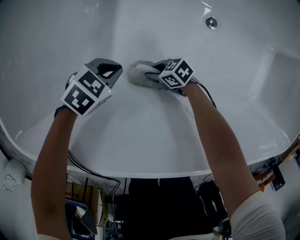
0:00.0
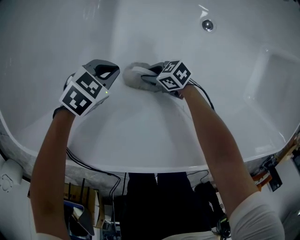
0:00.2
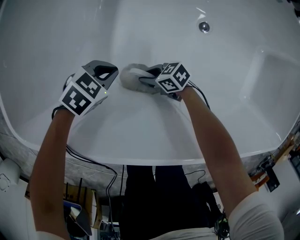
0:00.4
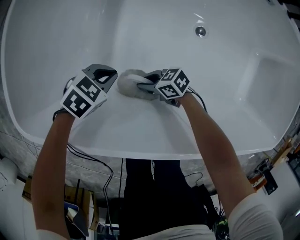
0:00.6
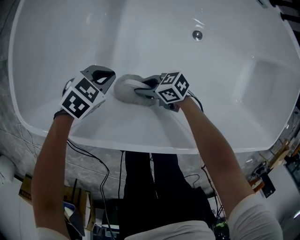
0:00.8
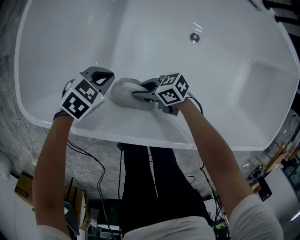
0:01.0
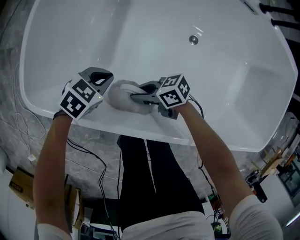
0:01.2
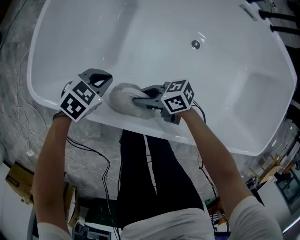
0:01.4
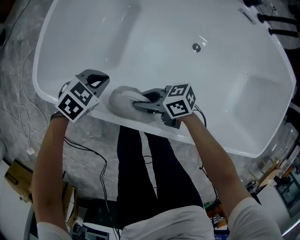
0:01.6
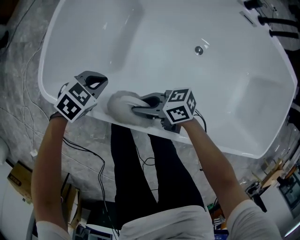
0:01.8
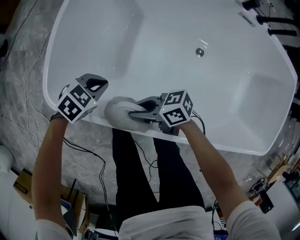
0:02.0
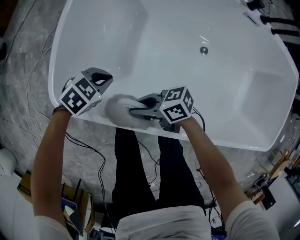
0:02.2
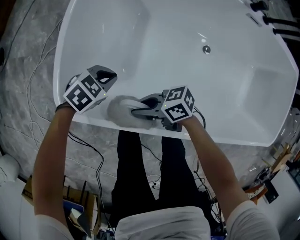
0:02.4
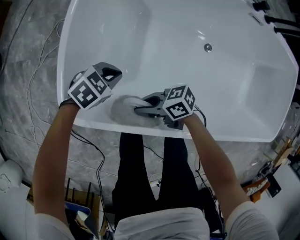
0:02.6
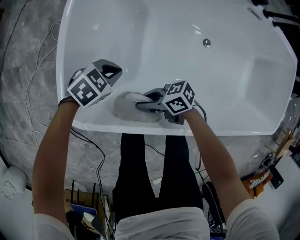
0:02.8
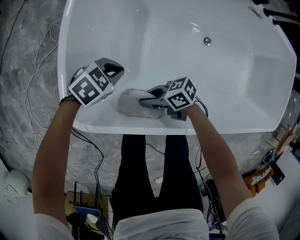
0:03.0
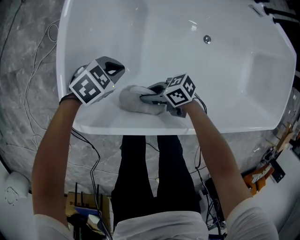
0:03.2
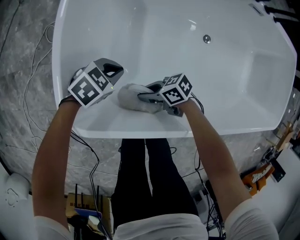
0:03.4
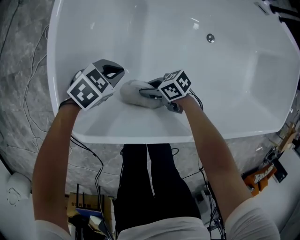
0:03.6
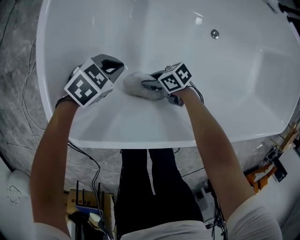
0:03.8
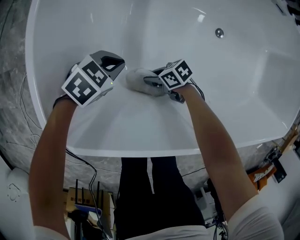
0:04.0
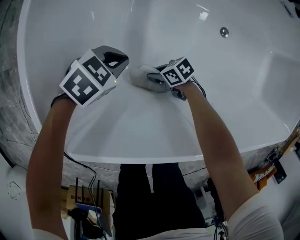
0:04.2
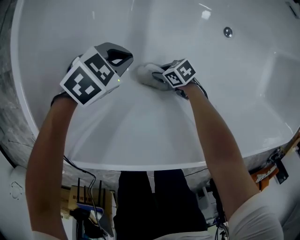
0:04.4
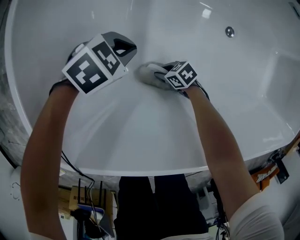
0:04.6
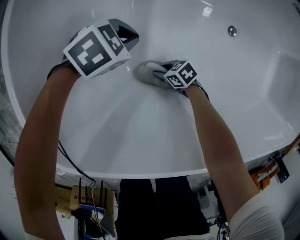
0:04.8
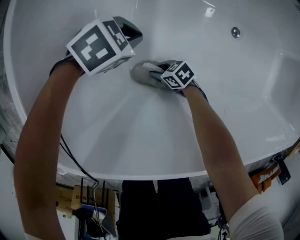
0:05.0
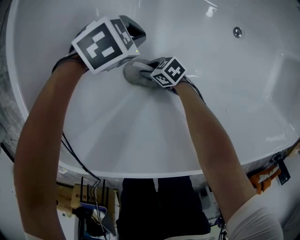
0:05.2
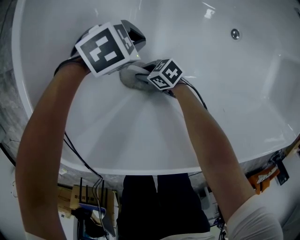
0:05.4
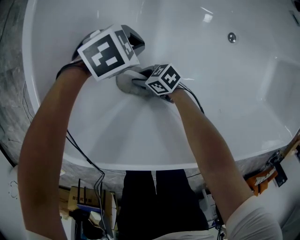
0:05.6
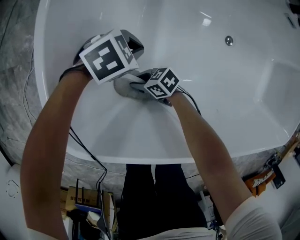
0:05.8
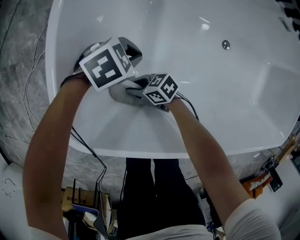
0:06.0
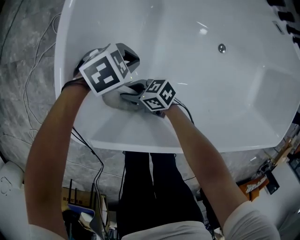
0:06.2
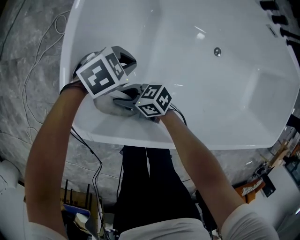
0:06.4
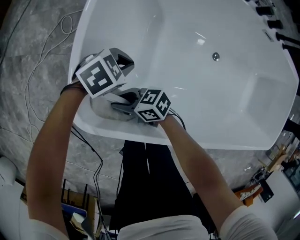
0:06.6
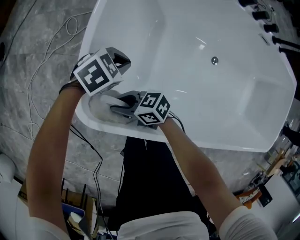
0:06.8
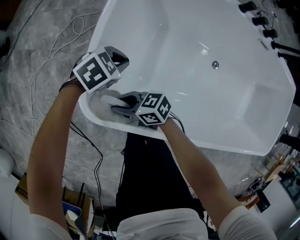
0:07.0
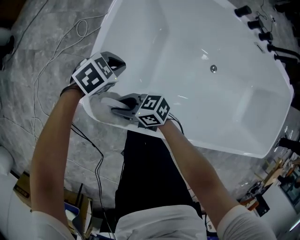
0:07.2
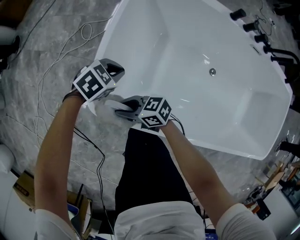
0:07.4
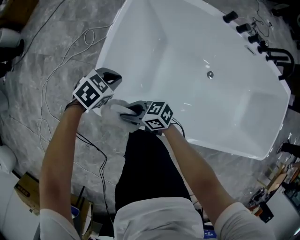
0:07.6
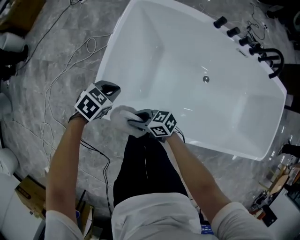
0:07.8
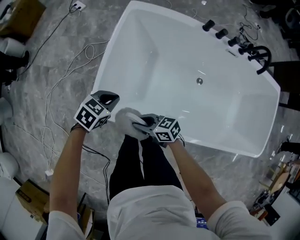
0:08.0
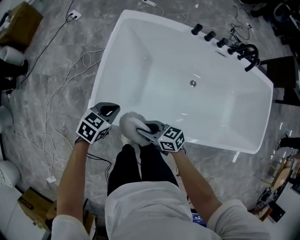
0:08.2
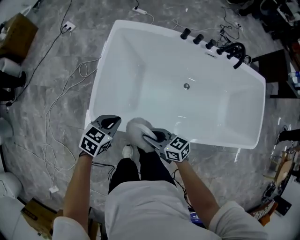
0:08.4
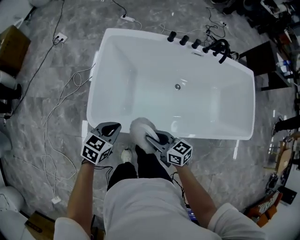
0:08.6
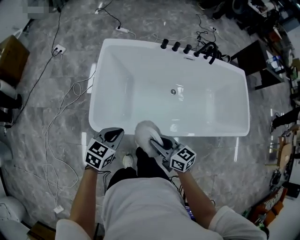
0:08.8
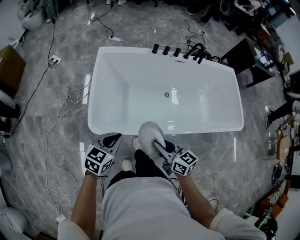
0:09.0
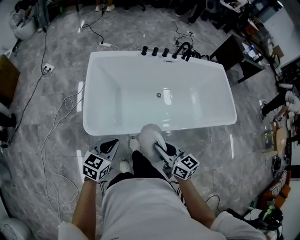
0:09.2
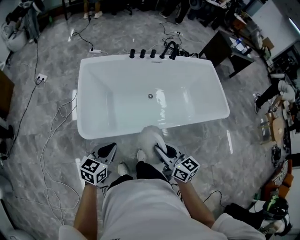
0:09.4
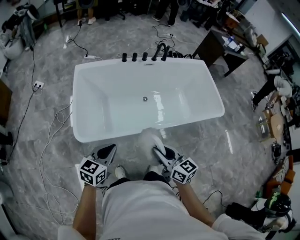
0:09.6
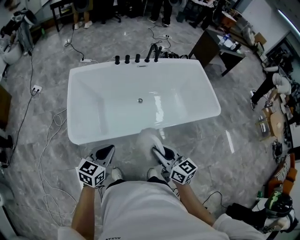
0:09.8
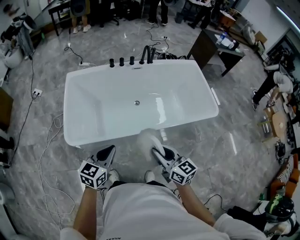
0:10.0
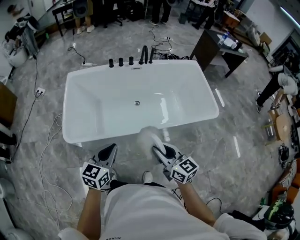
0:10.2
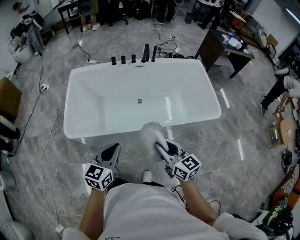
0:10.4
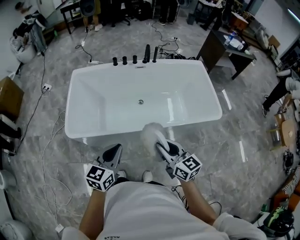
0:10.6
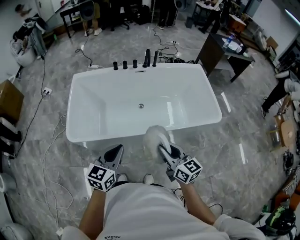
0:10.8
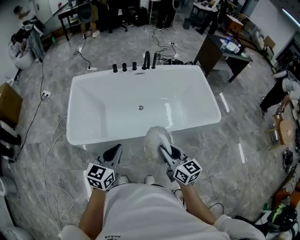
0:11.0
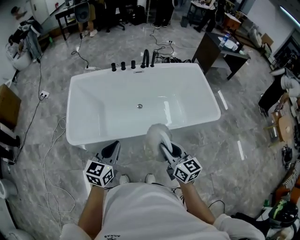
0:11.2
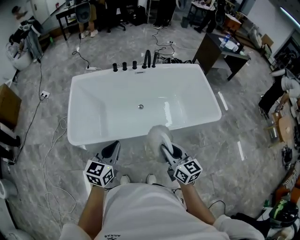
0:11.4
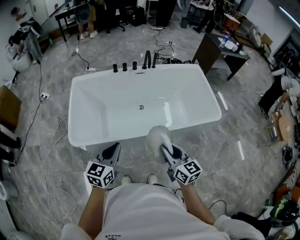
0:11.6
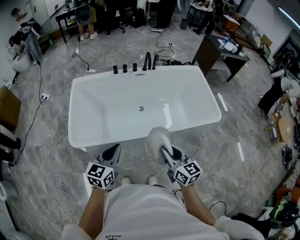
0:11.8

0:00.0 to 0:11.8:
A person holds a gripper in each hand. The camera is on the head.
0:00.0 to 0:01.4: The left gripper shifts roughly 20 cm upward. Meanwhile the right gripper moves upward, approximately 30 cm, and rotates about 20 degrees.
0:01.4 to 0:03.0: The left gripper ends up approximately 15 cm from where it was, while the right gripper changes place by roughly 15 cm.
0:03.0 to 0:04.4: The right gripper heads downward, covering approximately 25 cm, and swivels about 30 degrees. The left gripper travels downward by approximately 5 cm.
0:04.4 to 0:06.0: The right gripper moves about 20 cm, and swivels some 20 degrees.
0:06.0 to 0:07.4: The right gripper shifts some 25 cm upward; the left gripper travels upward by some 15 cm.
0:07.4 to 0:08.8: The left gripper goes some 25 cm upward, and changes its angle by approximately 30 degrees. The right gripper moves approximately 35 cm, and swivels some 50 degrees.
0:08.8 to 0:10.4: The left gripper shifts roughly 35 cm to the right, backward and upward; the right gripper shifts approximately 35 cm to the right and upward, and changes its angle by about 20 degrees.
0:10.4 to 0:11.8: The left gripper shifts by approximately 5 cm.

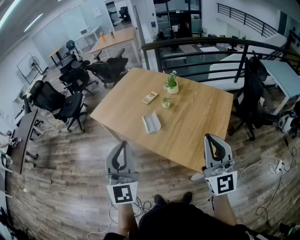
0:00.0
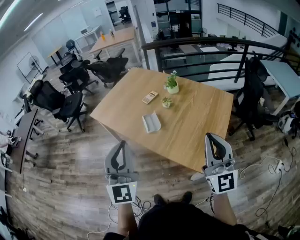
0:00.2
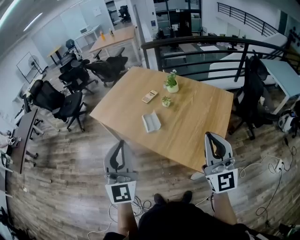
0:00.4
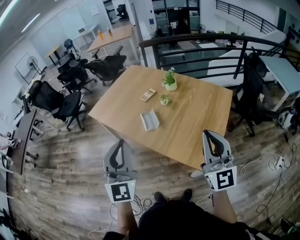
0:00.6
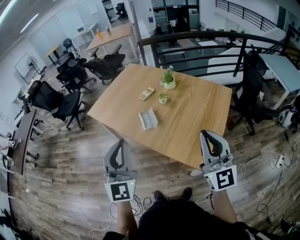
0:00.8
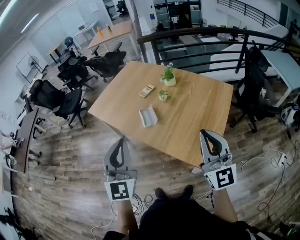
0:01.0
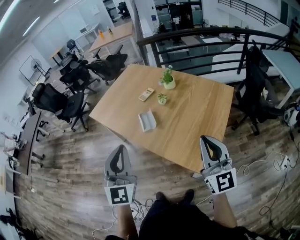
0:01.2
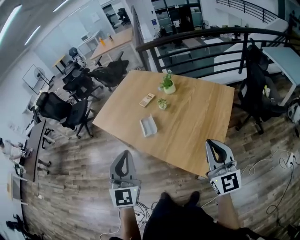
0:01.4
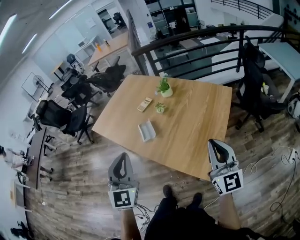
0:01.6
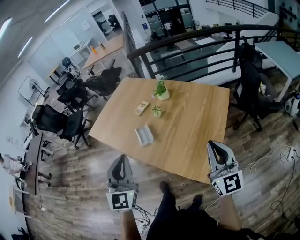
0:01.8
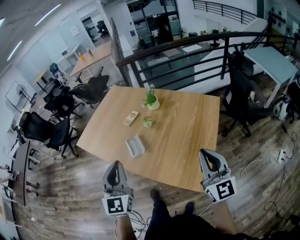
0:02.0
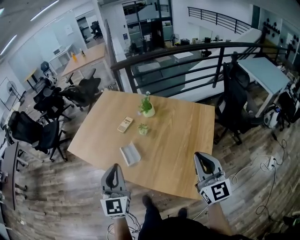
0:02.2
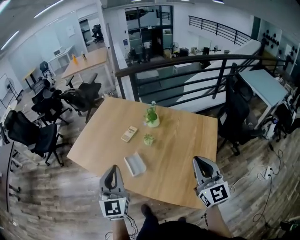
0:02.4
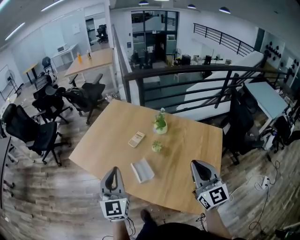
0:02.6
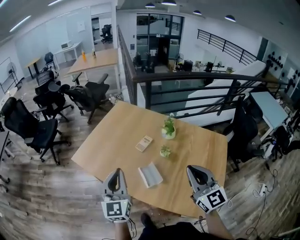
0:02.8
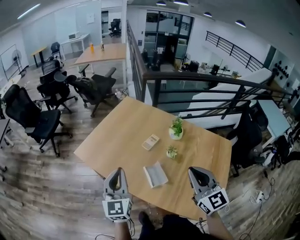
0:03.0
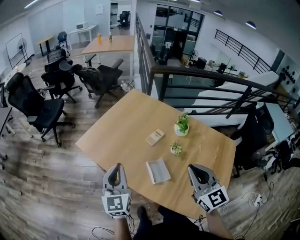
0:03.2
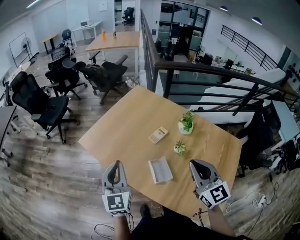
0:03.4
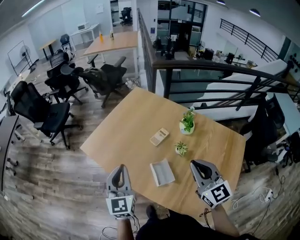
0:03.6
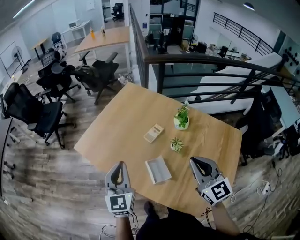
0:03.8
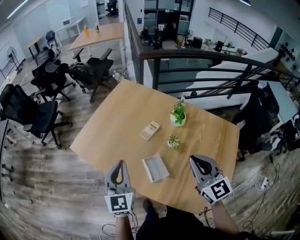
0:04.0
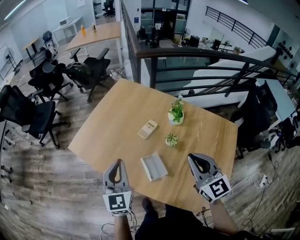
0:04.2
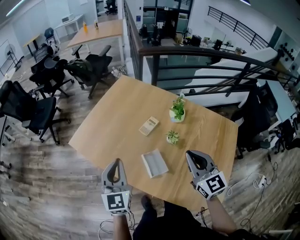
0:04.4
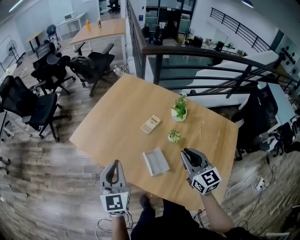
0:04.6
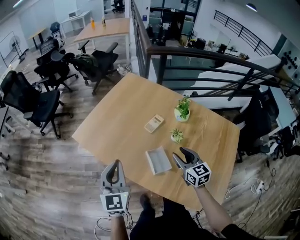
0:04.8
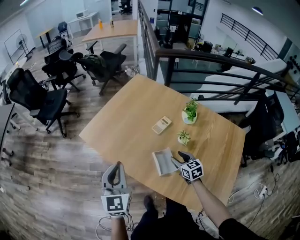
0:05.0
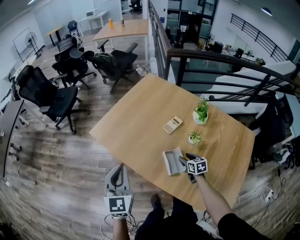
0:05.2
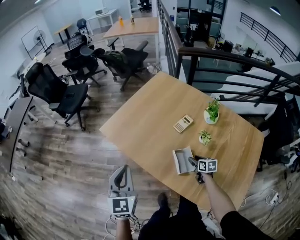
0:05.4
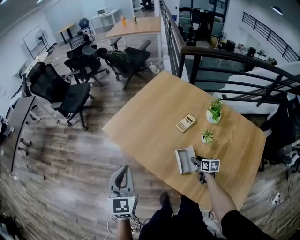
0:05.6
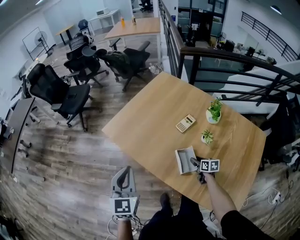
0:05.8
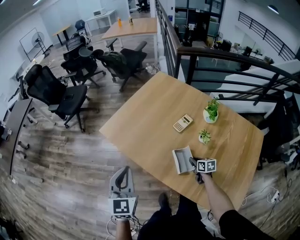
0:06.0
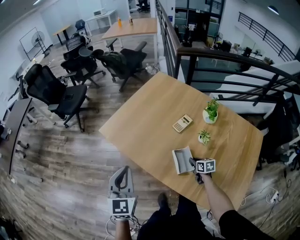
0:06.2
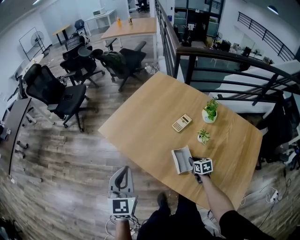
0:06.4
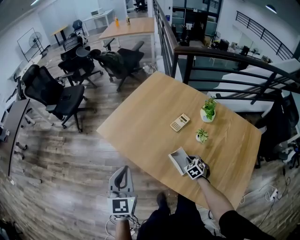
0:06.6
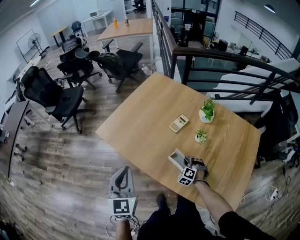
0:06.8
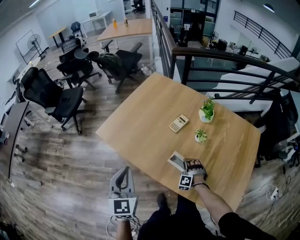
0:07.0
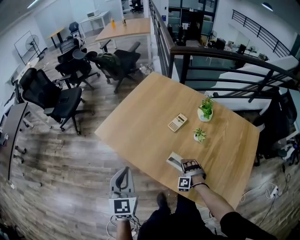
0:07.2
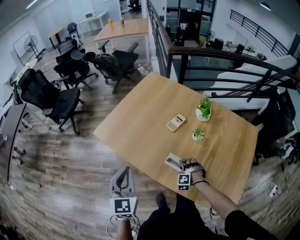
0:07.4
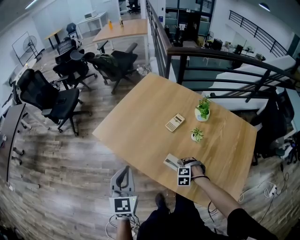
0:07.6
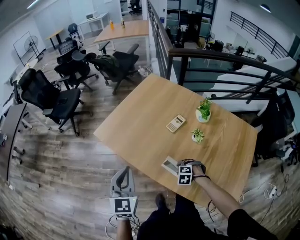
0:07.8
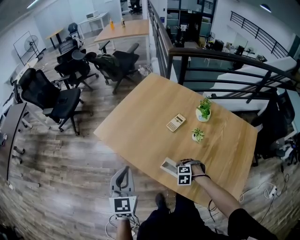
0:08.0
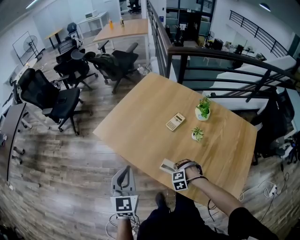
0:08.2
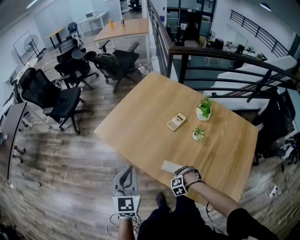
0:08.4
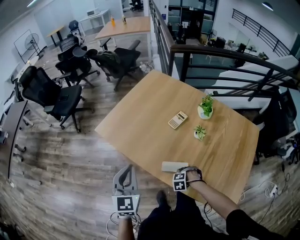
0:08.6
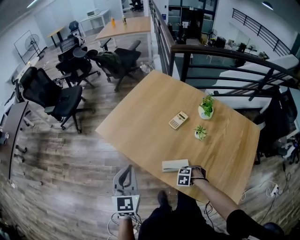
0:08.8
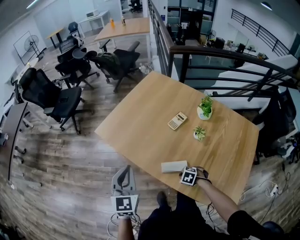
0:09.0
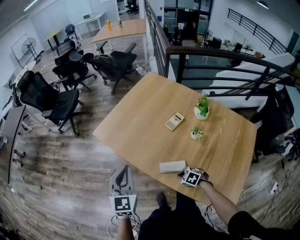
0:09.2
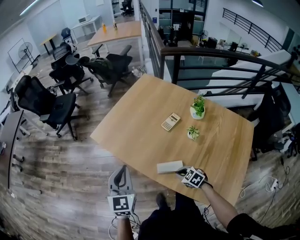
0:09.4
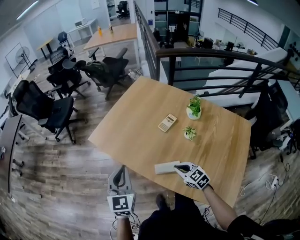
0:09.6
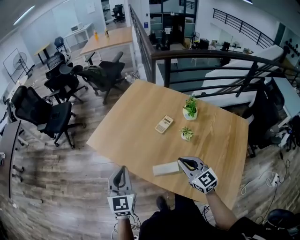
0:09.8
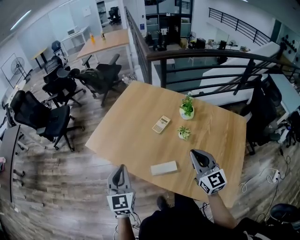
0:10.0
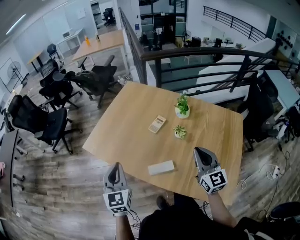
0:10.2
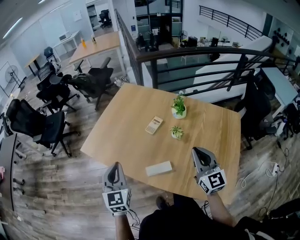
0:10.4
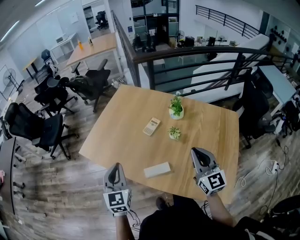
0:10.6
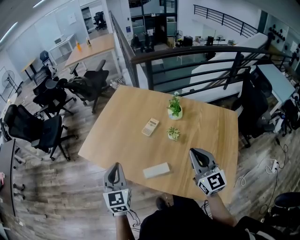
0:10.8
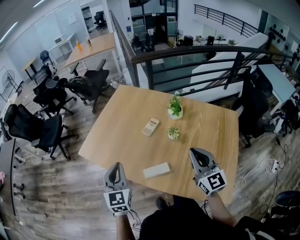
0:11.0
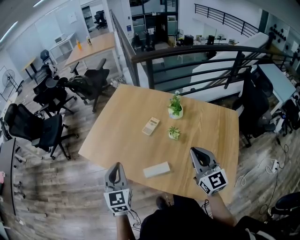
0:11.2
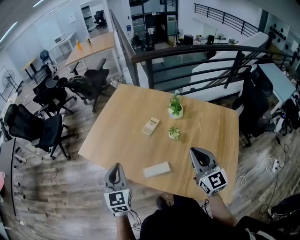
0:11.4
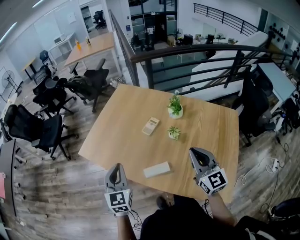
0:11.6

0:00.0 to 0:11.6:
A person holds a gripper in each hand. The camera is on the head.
0:00.0 to 0:01.4: The left gripper moves to the right, roughly 5 cm; the right gripper travels to the right and downward by about 10 cm.
0:01.4 to 0:02.8: Both grippers move forward and to the left, some 35 cm. The left gripper rotates about 20 degrees.
0:02.8 to 0:04.4: The left gripper shifts roughly 10 cm downward and forward. Meanwhile the right gripper shifts roughly 10 cm forward and downward.
0:04.4 to 0:05.8: The right gripper is displaced downward by roughly 35 cm, tilts its fingers some 30 degrees downward, and opens its fingers; the left gripper moves to the left, about 15 cm.
0:05.8 to 0:07.2: The right gripper goes approximately 5 cm to the left, rotates around the line of its fingers by about 110 degrees, counterclockwise from behind, and closes, then reopens.
0:07.2 to 0:08.8: The right gripper changes place by roughly 10 cm, points its fingers roughly 40 degrees further downward, and closes its fingers.
0:08.8 to 0:10.2: The left gripper moves roughly 5 cm, while the right gripper heads upward, covering about 35 cm, and angles its fingers upward, by about 80 degrees.
0:10.2 to 0:11.6: The grippers make only small movements.
